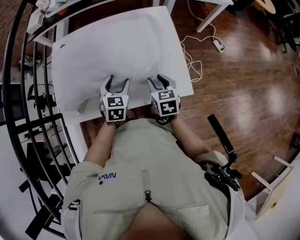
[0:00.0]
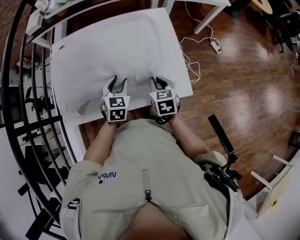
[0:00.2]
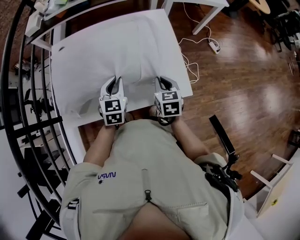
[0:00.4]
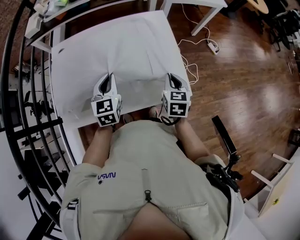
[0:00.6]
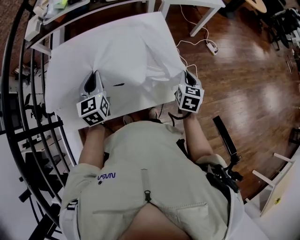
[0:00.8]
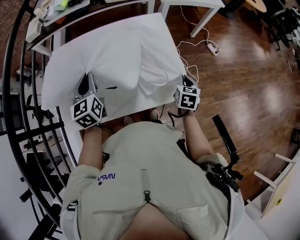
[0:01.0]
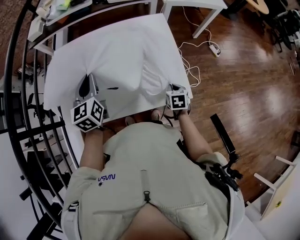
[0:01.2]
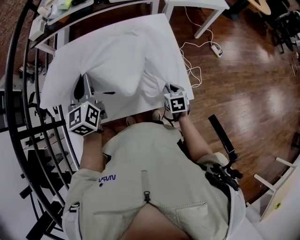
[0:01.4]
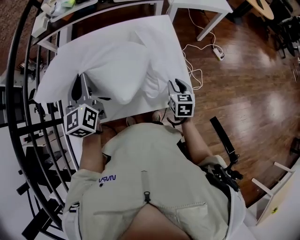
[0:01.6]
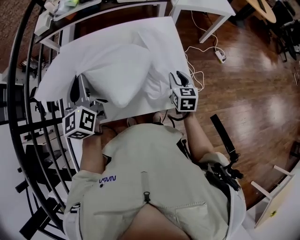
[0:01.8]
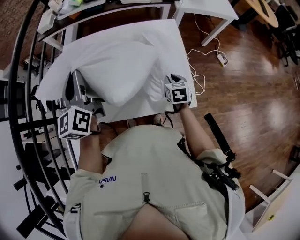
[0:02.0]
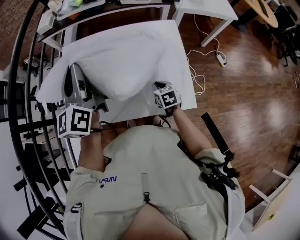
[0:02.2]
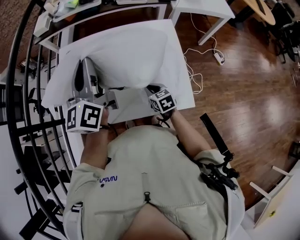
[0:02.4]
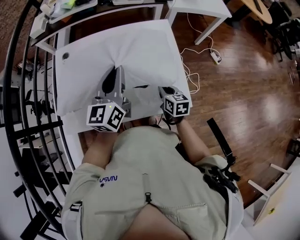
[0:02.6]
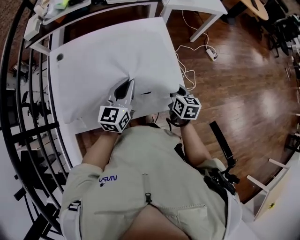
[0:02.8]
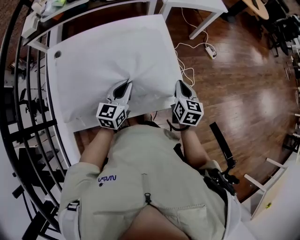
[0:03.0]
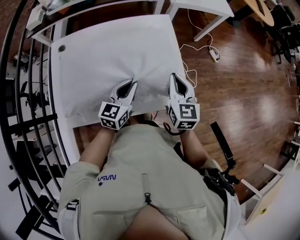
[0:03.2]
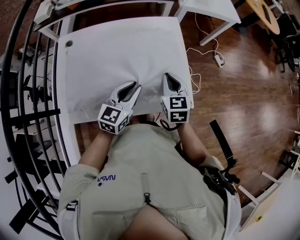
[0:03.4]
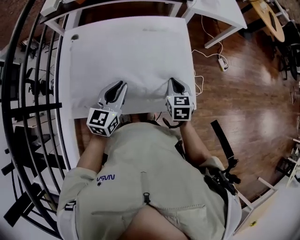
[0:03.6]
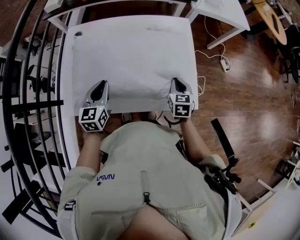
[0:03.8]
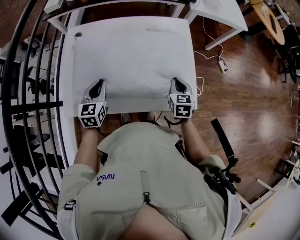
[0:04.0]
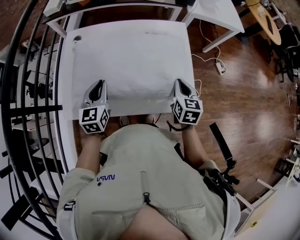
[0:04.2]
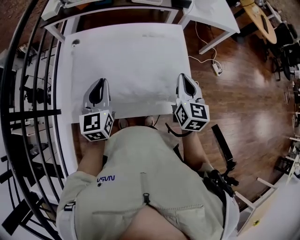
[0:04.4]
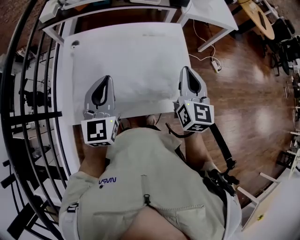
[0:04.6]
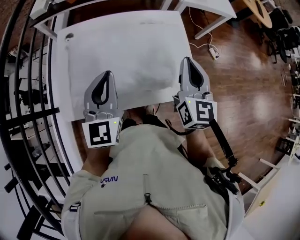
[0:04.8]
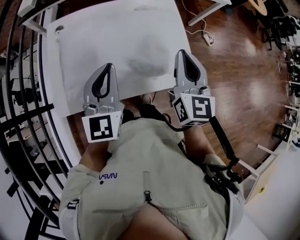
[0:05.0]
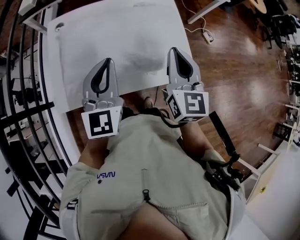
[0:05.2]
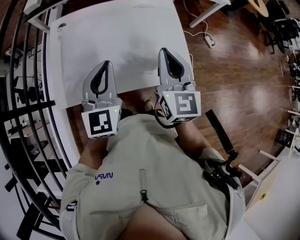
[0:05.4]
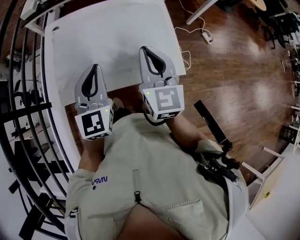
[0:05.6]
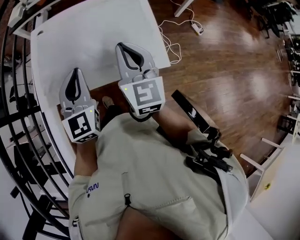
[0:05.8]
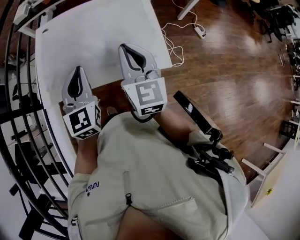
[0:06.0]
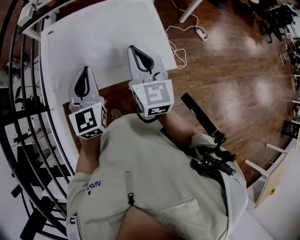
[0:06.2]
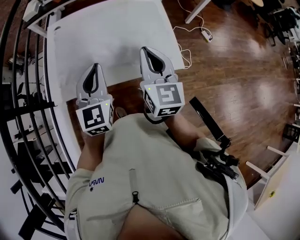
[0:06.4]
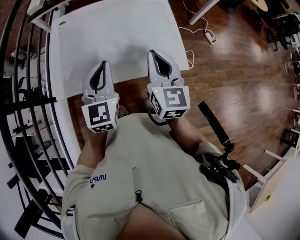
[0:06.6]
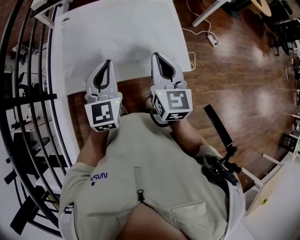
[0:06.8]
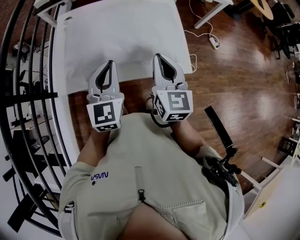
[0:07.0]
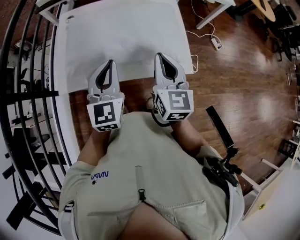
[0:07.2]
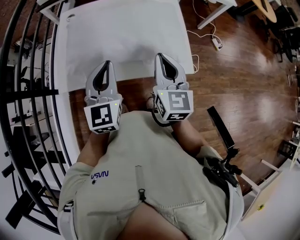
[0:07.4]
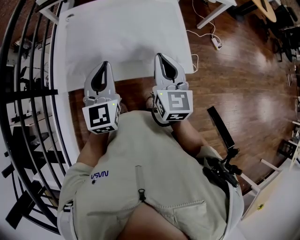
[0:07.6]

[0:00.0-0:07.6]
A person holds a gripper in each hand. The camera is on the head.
0:00.0 to 0:01.6: The right gripper moves to the right, roughly 10 cm, and closes, then opens again. The left gripper shifts approximately 25 cm upward and to the left, tilts its fingers some 30 degrees upward, and closes up.
0:01.6 to 0:03.0: The left gripper changes place by roughly 25 cm, and rotates about 40 degrees; the right gripper closes.
0:03.0 to 0:04.6: The right gripper goes up and down, about 25 cm each way, reversing 2 times, and turns by approximately 30 degrees. Meanwhile the left gripper goes about 20 cm upward and to the left, and swivels some 30 degrees.
0:04.6 to 0:06.0: The right gripper travels backward by roughly 10 cm, while the left gripper goes about 10 cm backward and to the right.
0:06.0 to 0:07.6: The grippers stay close to where they were, moving slightly.

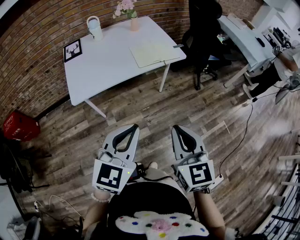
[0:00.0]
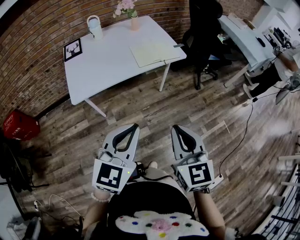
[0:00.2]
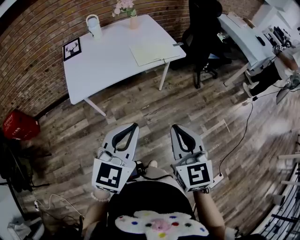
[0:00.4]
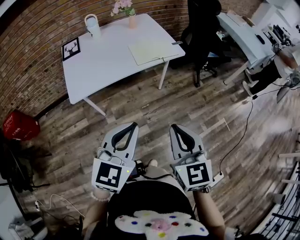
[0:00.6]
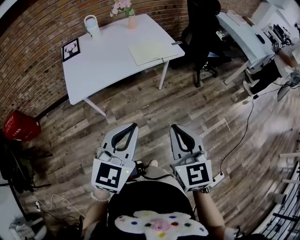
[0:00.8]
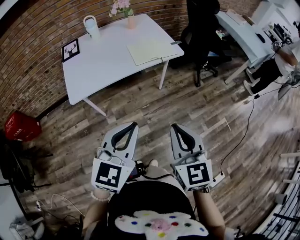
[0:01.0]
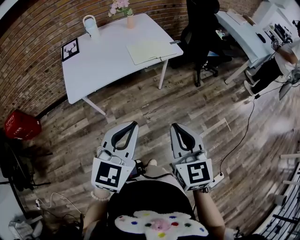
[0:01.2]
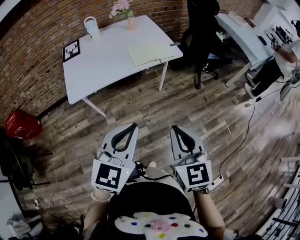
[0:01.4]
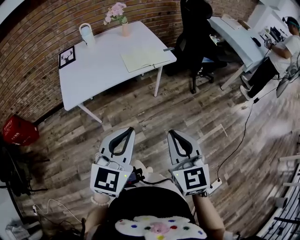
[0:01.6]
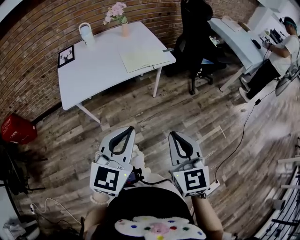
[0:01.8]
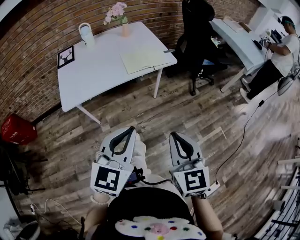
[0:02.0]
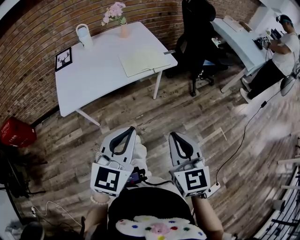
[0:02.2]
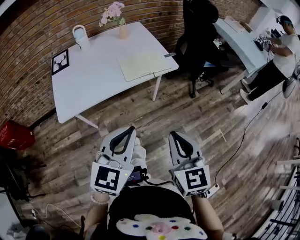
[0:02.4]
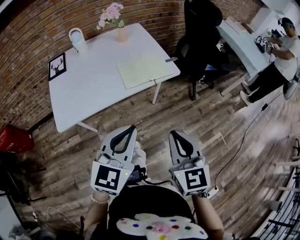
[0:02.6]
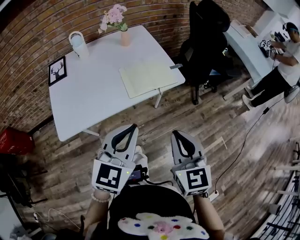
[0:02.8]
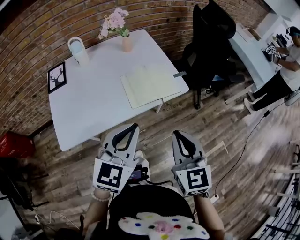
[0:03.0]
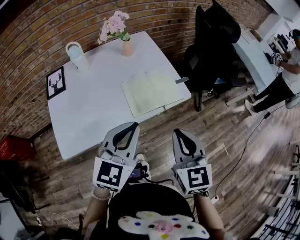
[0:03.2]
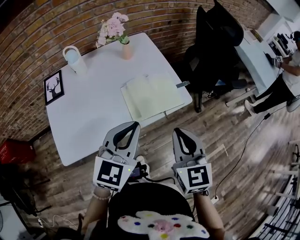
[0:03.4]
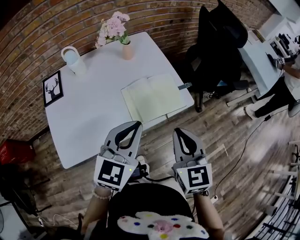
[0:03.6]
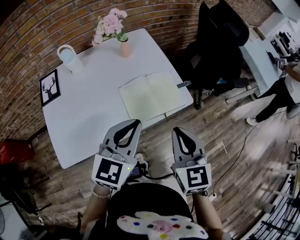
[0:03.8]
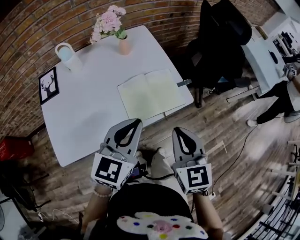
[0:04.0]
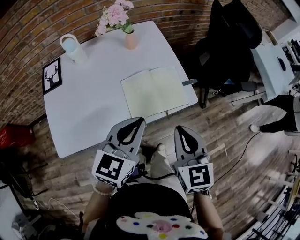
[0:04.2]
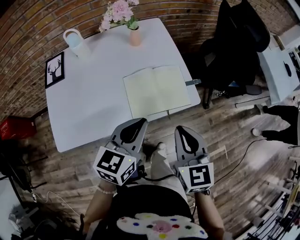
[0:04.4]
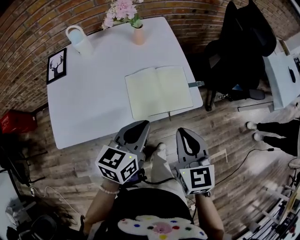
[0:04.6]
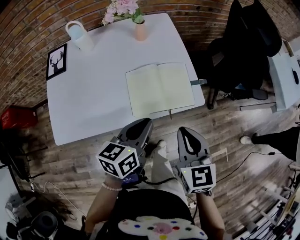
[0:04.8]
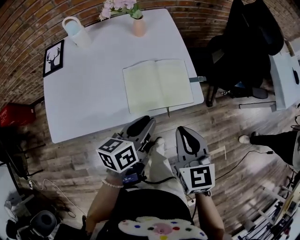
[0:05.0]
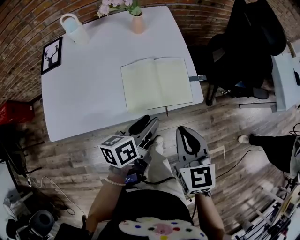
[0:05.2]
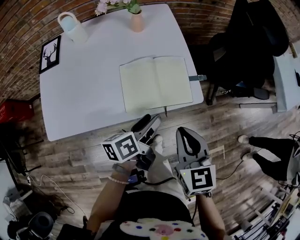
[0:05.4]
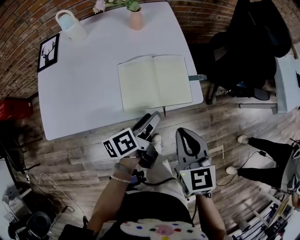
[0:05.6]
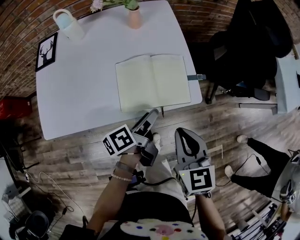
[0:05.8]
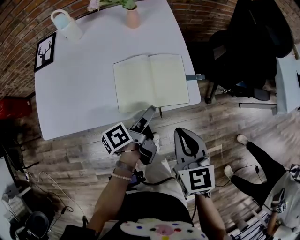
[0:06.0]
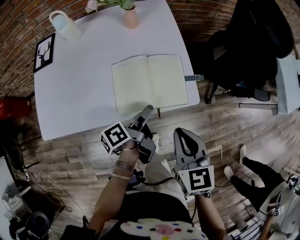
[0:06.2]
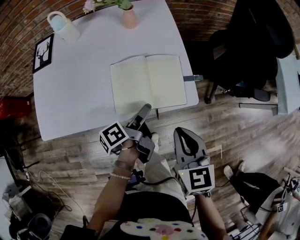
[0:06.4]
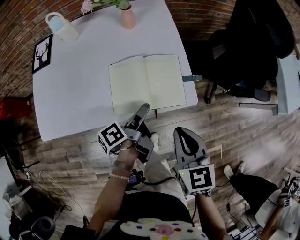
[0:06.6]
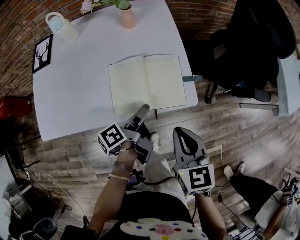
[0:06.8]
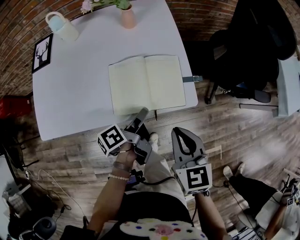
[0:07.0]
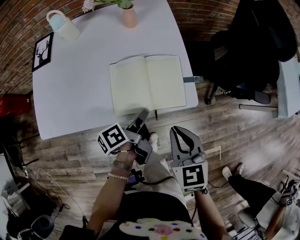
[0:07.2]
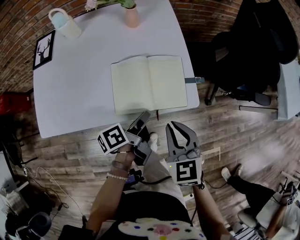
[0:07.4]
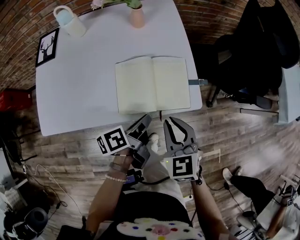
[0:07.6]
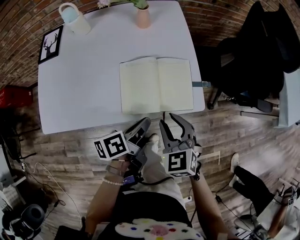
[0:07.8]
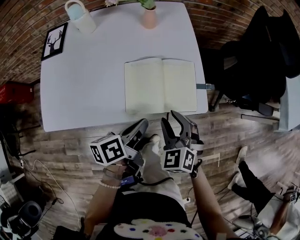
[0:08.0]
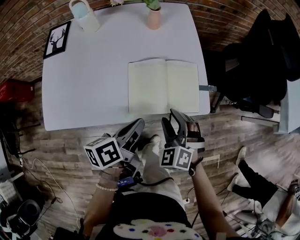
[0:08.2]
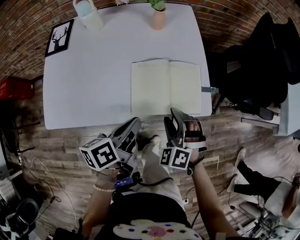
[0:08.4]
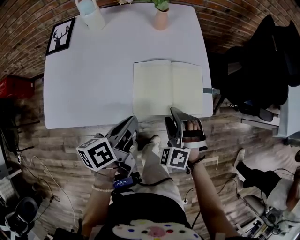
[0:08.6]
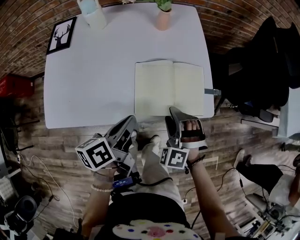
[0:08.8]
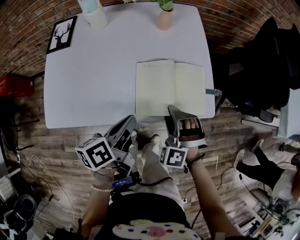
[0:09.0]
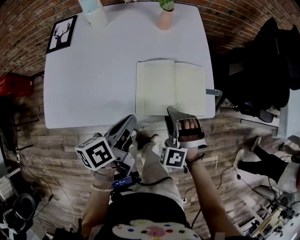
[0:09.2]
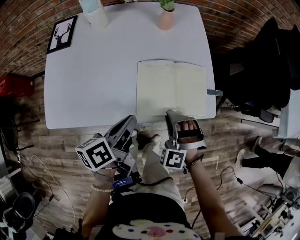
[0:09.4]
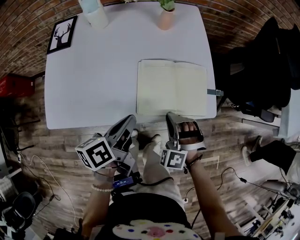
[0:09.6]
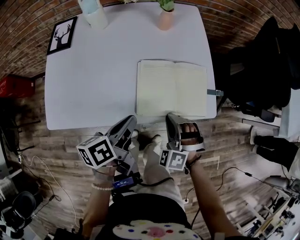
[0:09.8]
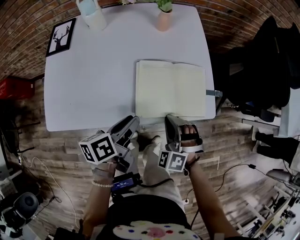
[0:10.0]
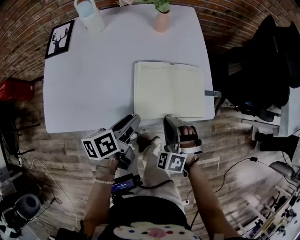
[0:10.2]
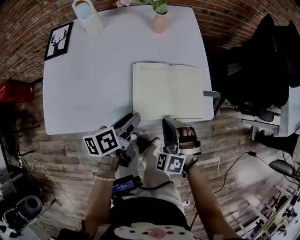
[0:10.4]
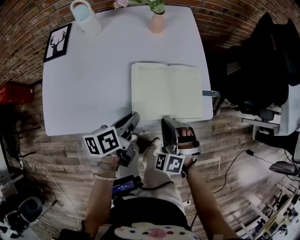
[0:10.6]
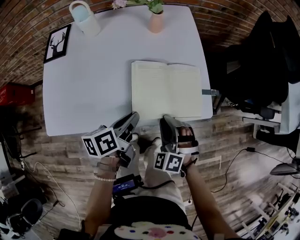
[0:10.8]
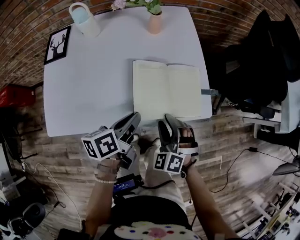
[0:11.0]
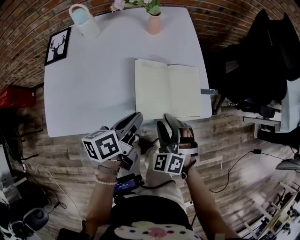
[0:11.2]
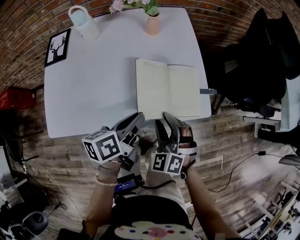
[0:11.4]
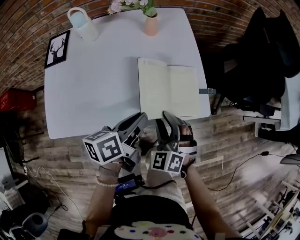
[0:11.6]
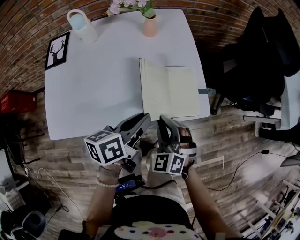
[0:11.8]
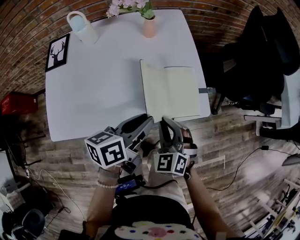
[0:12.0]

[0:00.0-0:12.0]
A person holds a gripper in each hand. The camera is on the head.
0:00.0 to 0:01.6: The grippers stay close to where they were, moving slightly.
0:01.6 to 0:03.0: The two grippers go approximately 25 cm forward.
0:03.0 to 0:04.4: The left gripper travels forward and downward by some 15 cm, and changes its angle by about 20 degrees. Meanwhile the right gripper travels forward by about 10 cm.
0:04.4 to 0:06.0: The left gripper shifts about 15 cm downward, twists some 80 degrees counterclockwise, seen from behind, and opens; the right gripper travels downward by roughly 5 cm.
0:06.0 to 0:07.6: The left gripper closes, while the right gripper goes approximately 5 cm downward.
0:07.6 to 0:09.0: The right gripper goes some 10 cm downward and to the left, rotates around the line of its fingers by roughly 60 degrees, counterclockwise from behind, and opens up; the left gripper heads to the left and upward, covering about 15 cm.
0:09.0 to 0:10.4: The right gripper closes up. Meanwhile the left gripper moves downward, roughly 5 cm, and opens.
0:10.4 to 0:12.0: The left gripper heads upward and to the right, covering about 10 cm, and changes its angle by roughly 20 degrees. Meanwhile the right gripper swivels some 30 degrees, and opens and closes again.

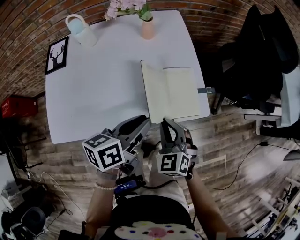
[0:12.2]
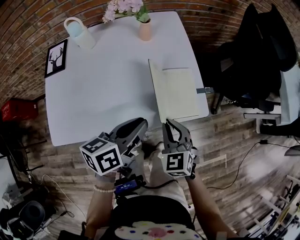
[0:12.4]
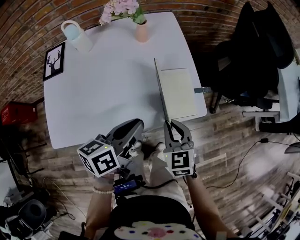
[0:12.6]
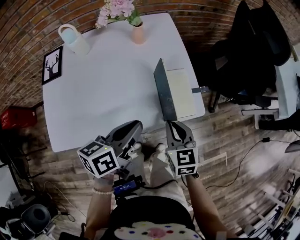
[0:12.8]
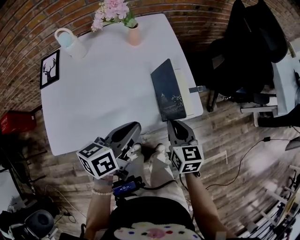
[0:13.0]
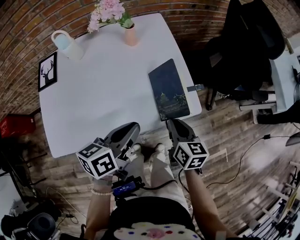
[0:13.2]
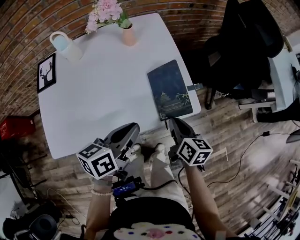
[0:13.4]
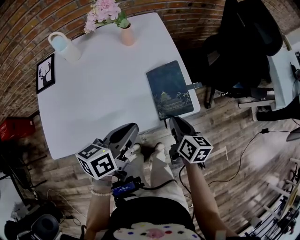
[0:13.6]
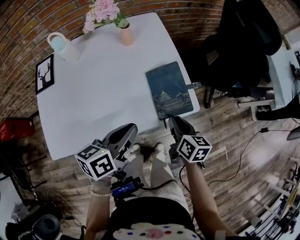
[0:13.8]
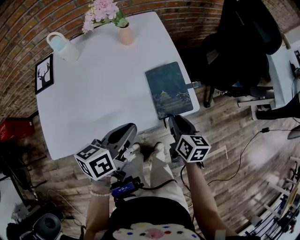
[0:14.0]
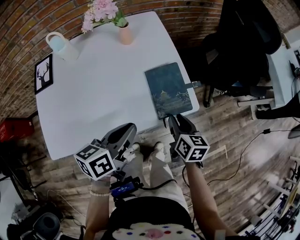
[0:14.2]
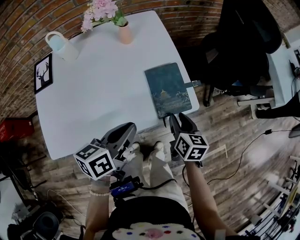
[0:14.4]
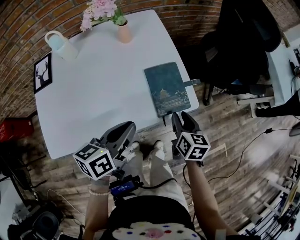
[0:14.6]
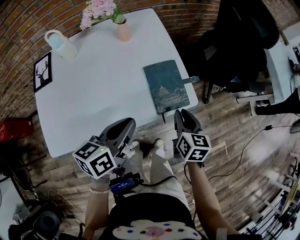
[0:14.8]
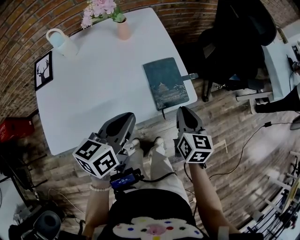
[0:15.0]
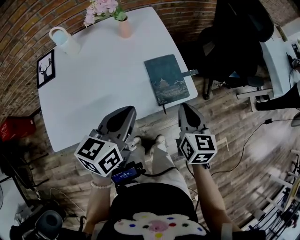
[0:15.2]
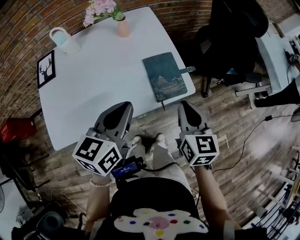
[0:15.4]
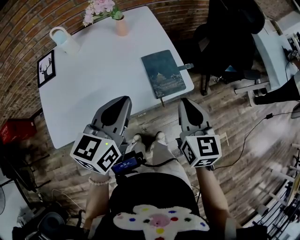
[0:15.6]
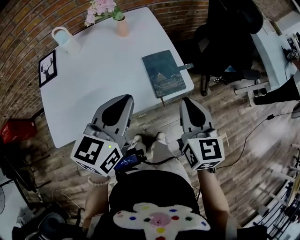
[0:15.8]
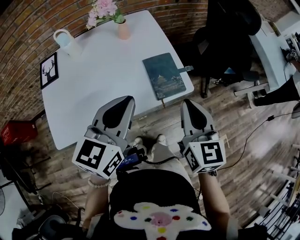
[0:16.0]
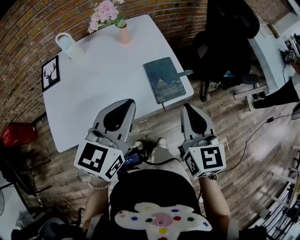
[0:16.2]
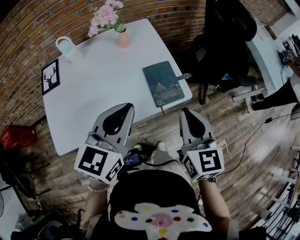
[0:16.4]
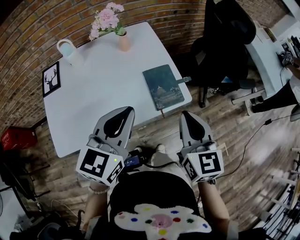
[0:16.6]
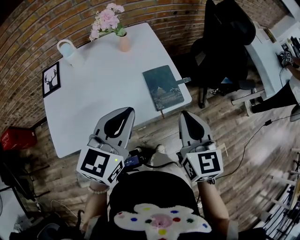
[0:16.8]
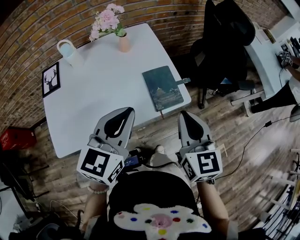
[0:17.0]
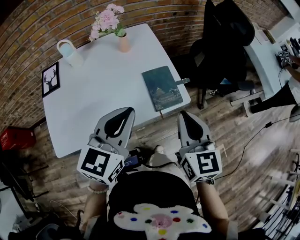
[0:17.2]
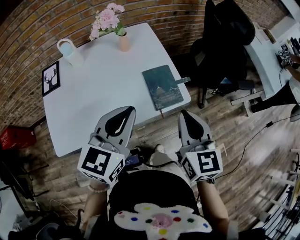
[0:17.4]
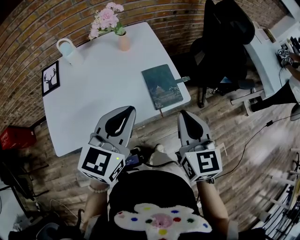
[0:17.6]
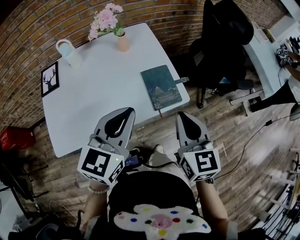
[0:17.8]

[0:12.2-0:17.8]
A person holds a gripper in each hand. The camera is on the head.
0:12.2 to 0:13.6: The right gripper heads to the right, covering about 10 cm, and rotates around the line of its fingers by roughly 70 degrees, clockwise from behind.
0:13.6 to 0:15.0: The right gripper ends up some 5 cm from where it was, changes its angle by some 20 degrees, and opens and closes again.
0:15.0 to 0:16.4: The grippers both shift upward by roughly 15 cm. The left gripper swivels about 30 degrees.
0:16.4 to 0:17.8: The two grippers keep their place.
